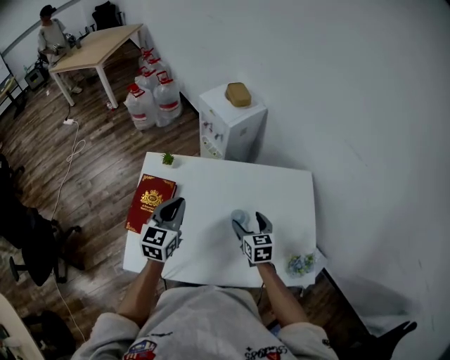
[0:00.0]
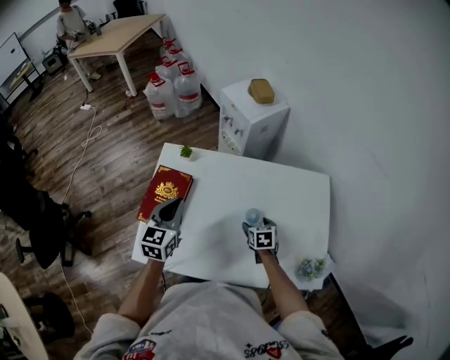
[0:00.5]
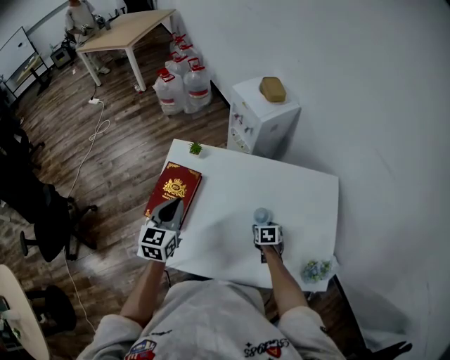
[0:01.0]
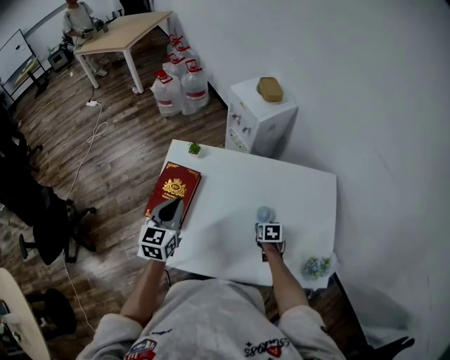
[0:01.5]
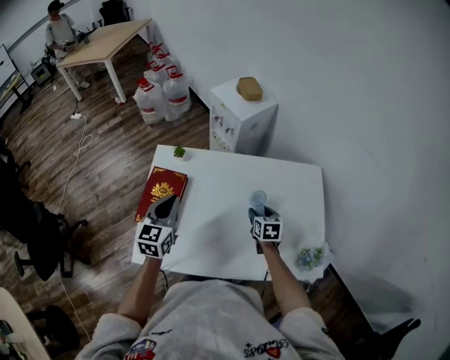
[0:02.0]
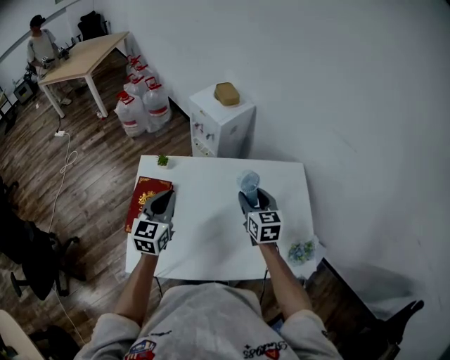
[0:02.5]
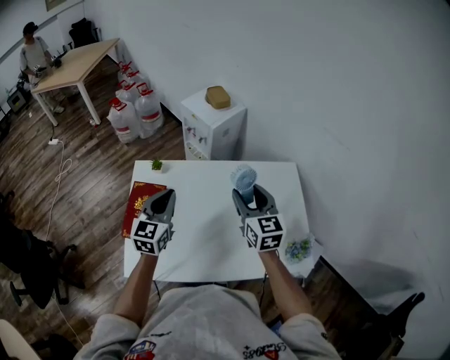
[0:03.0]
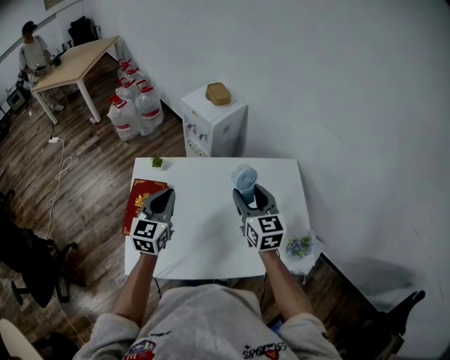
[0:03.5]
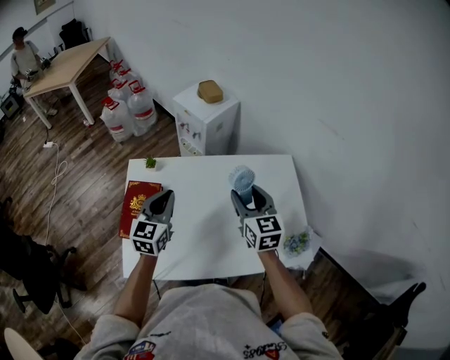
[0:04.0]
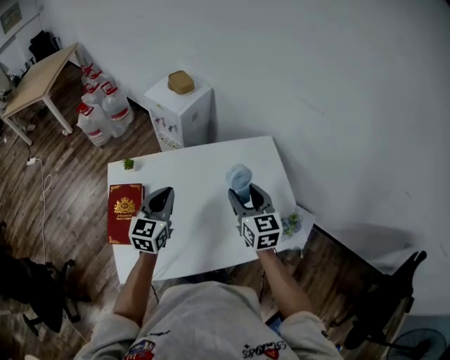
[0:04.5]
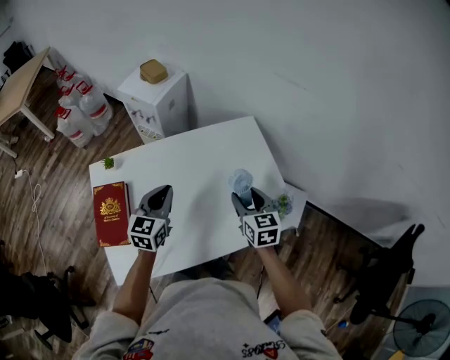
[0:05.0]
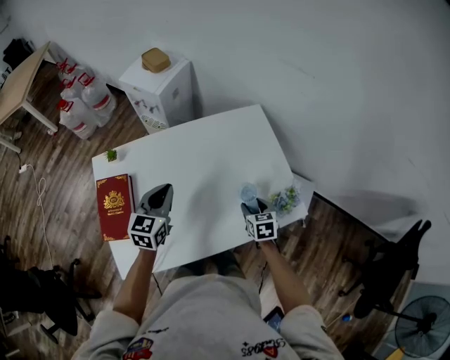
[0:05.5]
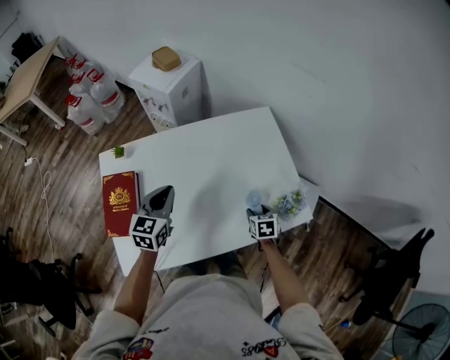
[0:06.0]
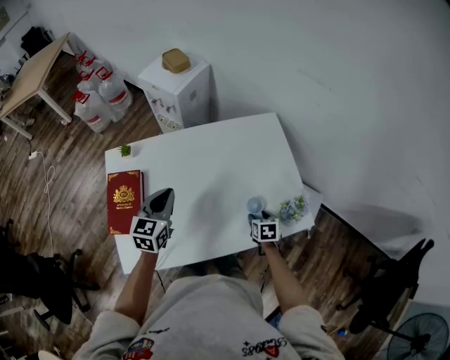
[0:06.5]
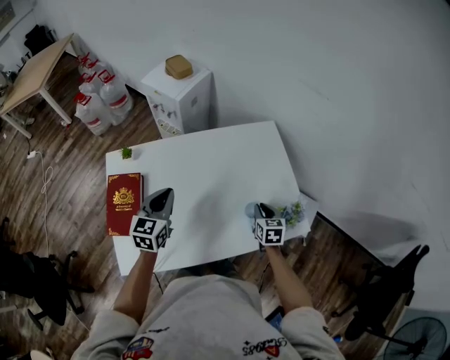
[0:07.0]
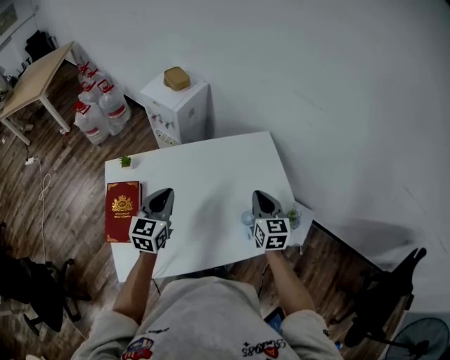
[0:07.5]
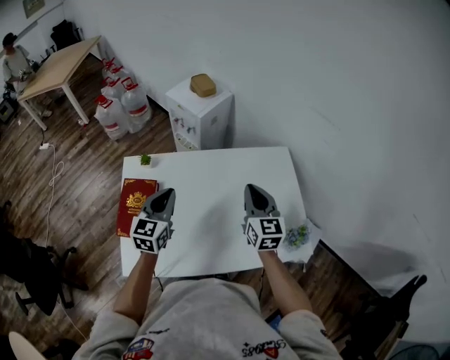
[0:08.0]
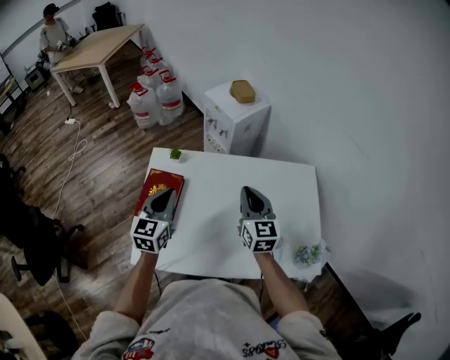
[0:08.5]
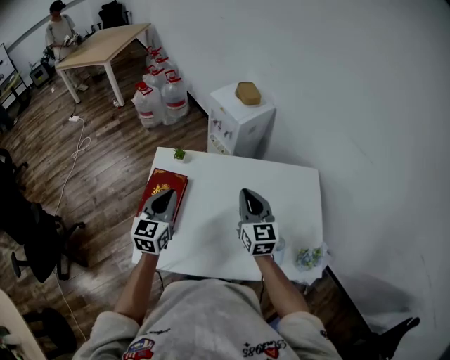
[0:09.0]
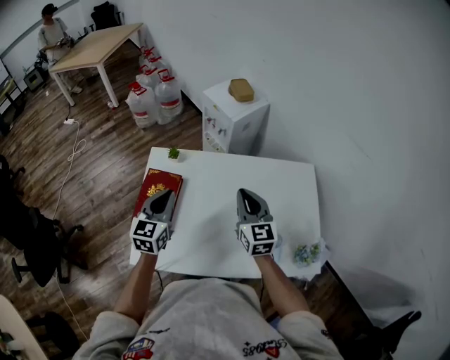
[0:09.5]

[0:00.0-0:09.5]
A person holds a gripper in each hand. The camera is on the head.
0:00.0 to 0:02.0: The right gripper shifts about 5 cm downward, and closes its fingers. The left gripper is displaced to the left by some 5 cm.
0:02.0 to 0:04.0: The right gripper moves upward, approximately 25 cm, and rotates about 30 degrees. Meanwhile the left gripper shifts about 5 cm to the right.
0:04.0 to 0:05.5: The right gripper moves downward and to the right, approximately 35 cm, and tips its fingers downward by about 30 degrees. The left gripper shifts approximately 15 cm to the right and downward.
0:05.5 to 0:07.5: The right gripper heads upward, covering roughly 20 cm, rotates about 30 degrees, and closes up; the left gripper moves roughly 5 cm.
0:07.5 to 0:09.5: Both grippers travel together to the left, about 20 cm. The right gripper changes its angle by roughly 30 degrees.

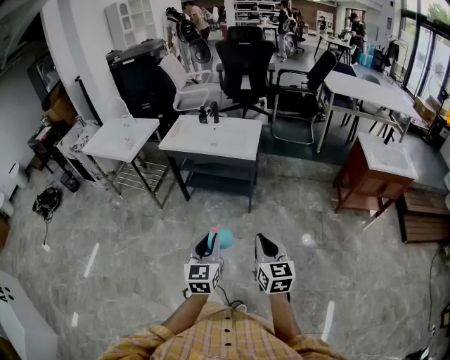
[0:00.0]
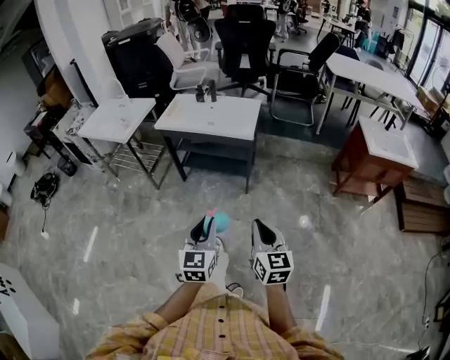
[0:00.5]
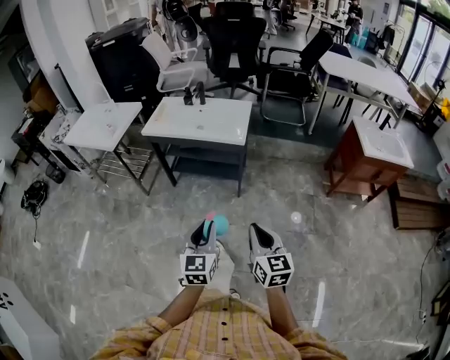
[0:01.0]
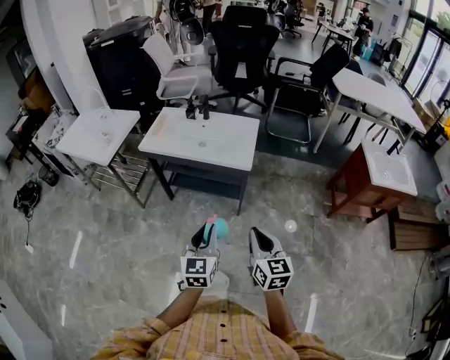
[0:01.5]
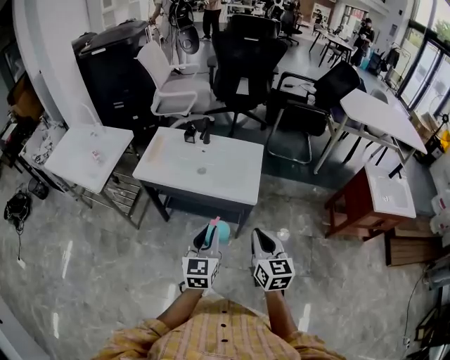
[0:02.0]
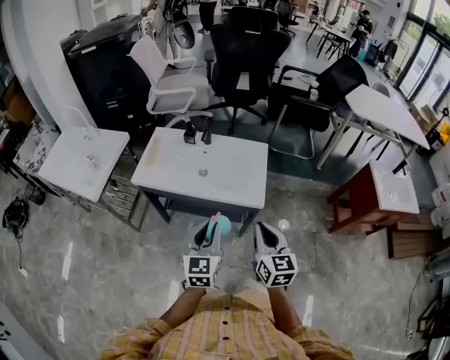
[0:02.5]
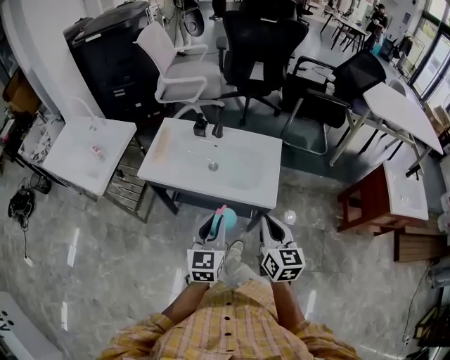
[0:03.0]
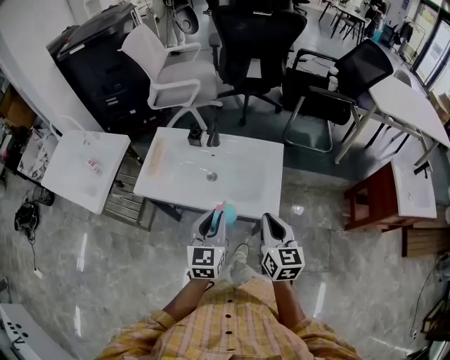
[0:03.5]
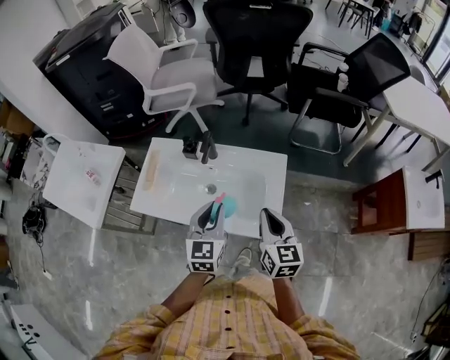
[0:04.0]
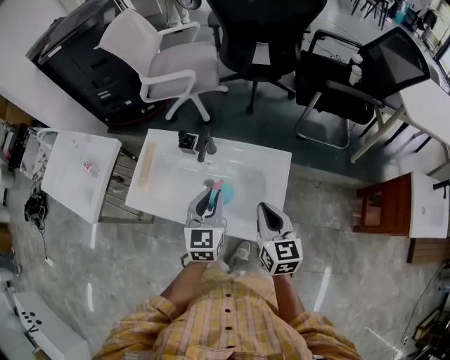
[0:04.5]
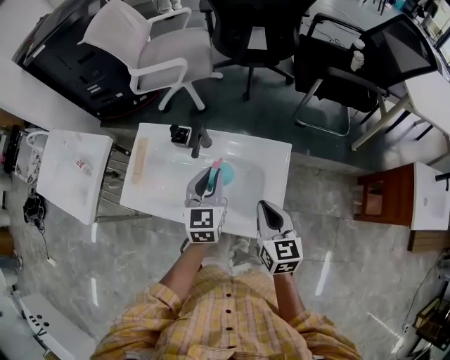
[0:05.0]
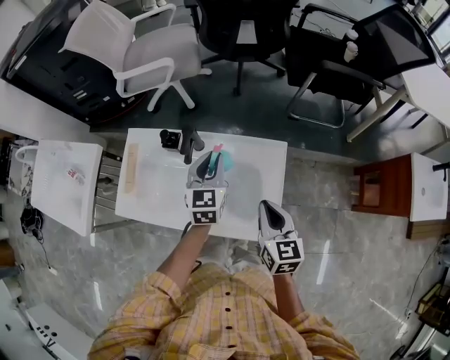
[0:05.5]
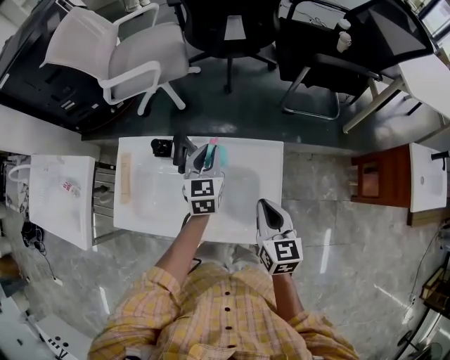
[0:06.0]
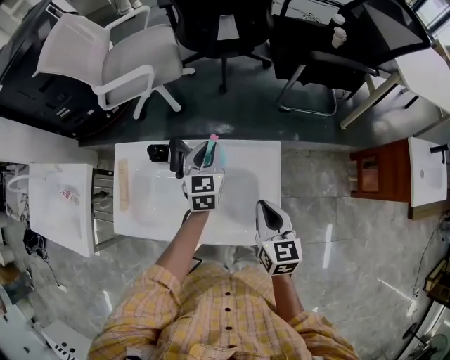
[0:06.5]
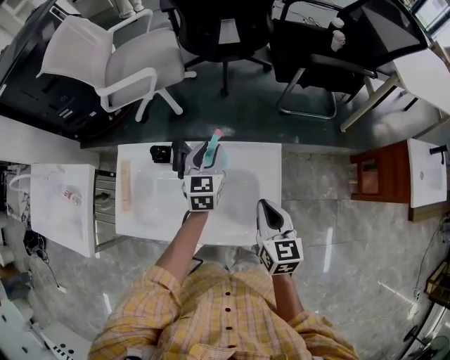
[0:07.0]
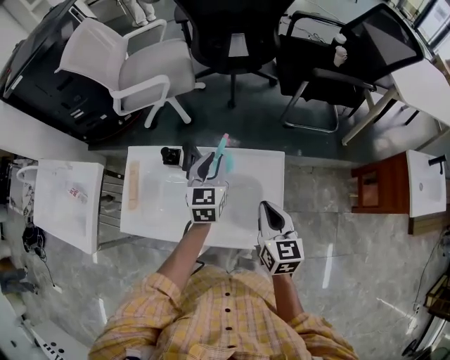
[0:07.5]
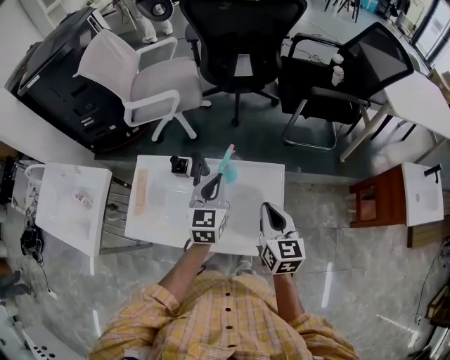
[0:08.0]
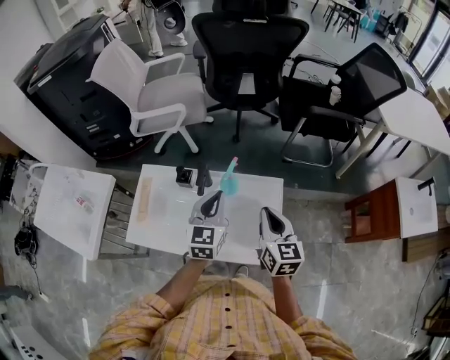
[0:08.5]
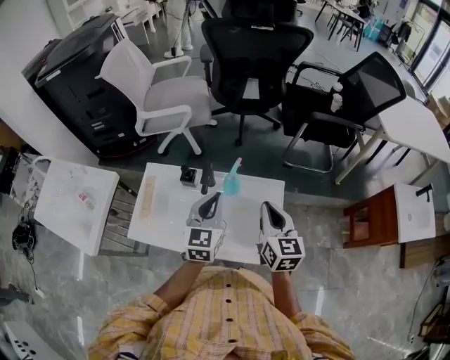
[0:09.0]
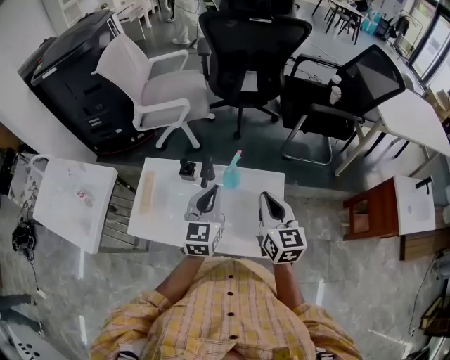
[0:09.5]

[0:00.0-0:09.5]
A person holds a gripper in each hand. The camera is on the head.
0:00.0 to 0:02.0: The grippers both shift forward by approximately 40 cm.
0:02.0 to 0:04.0: Both grippers move forward, some 30 cm.
0:04.0 to 0:05.5: The left gripper shifts roughly 20 cm forward; the right gripper travels forward and downward by about 10 cm.
0:07.5 to 0:09.5: The left gripper shifts about 15 cm backward and upward, and closes its fingers. Meanwhile the right gripper moves upward, about 10 cm.

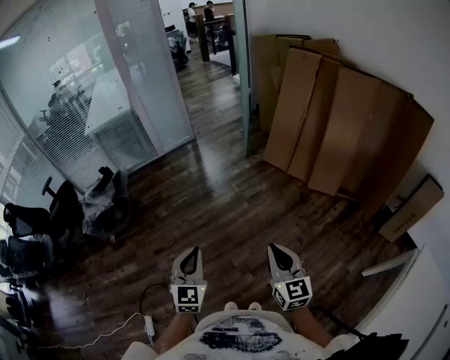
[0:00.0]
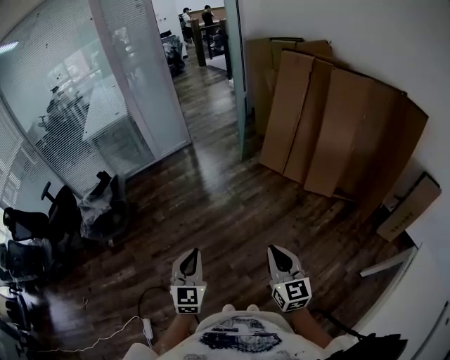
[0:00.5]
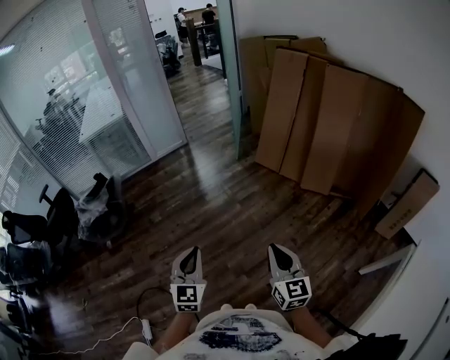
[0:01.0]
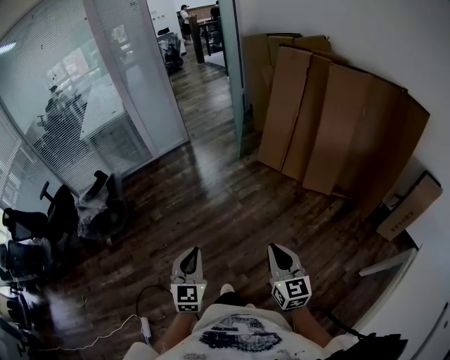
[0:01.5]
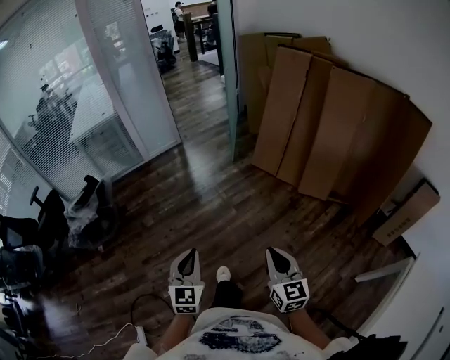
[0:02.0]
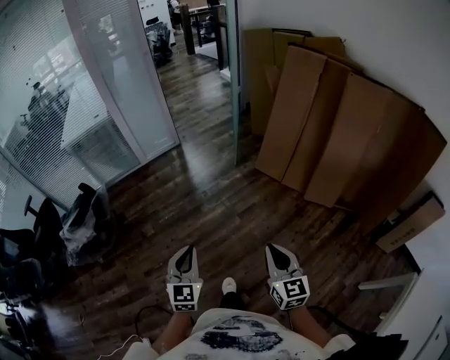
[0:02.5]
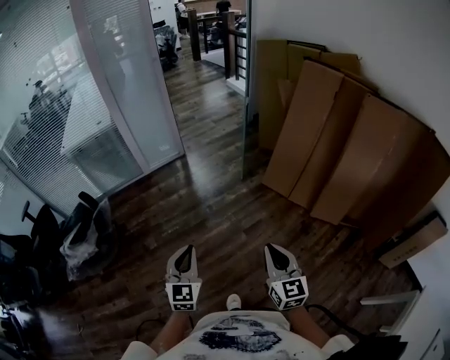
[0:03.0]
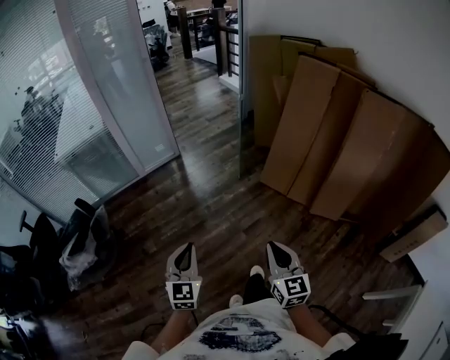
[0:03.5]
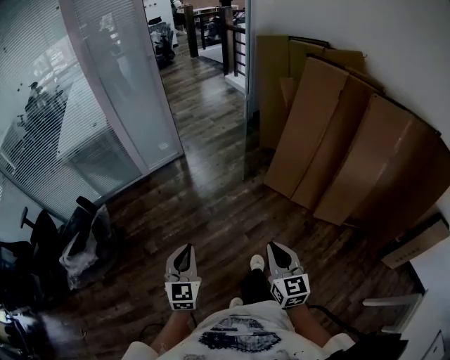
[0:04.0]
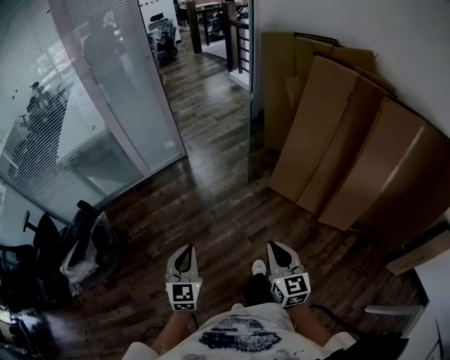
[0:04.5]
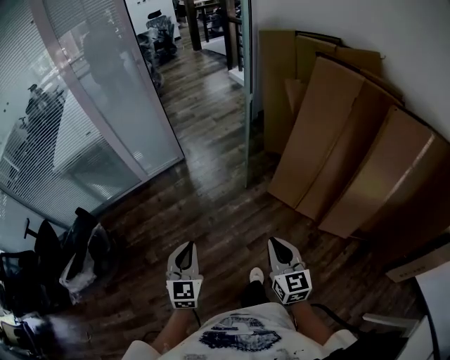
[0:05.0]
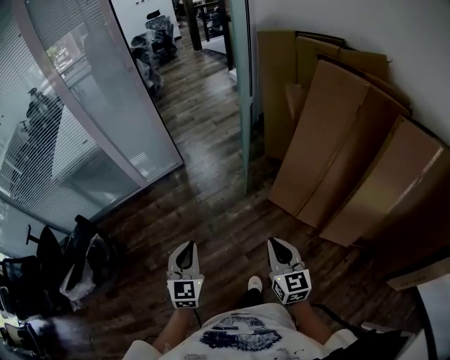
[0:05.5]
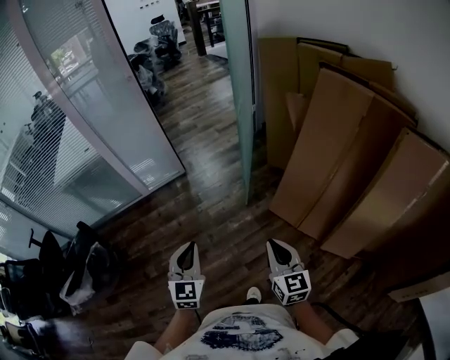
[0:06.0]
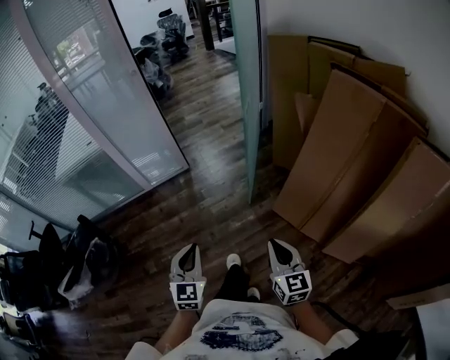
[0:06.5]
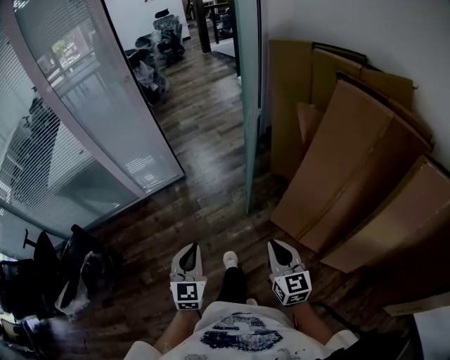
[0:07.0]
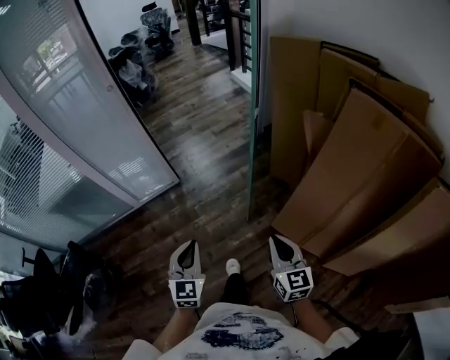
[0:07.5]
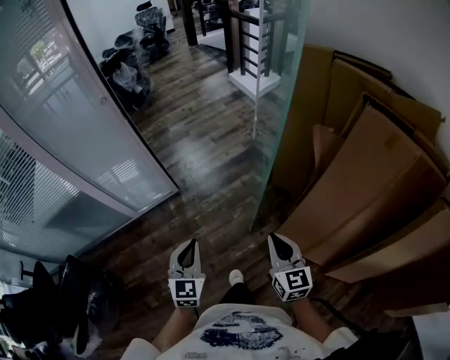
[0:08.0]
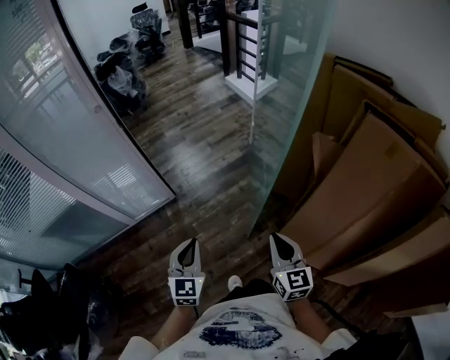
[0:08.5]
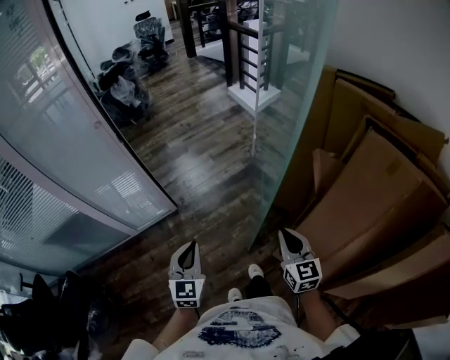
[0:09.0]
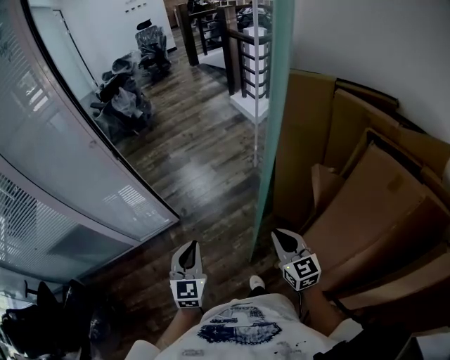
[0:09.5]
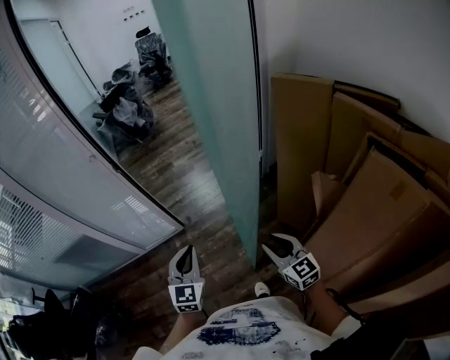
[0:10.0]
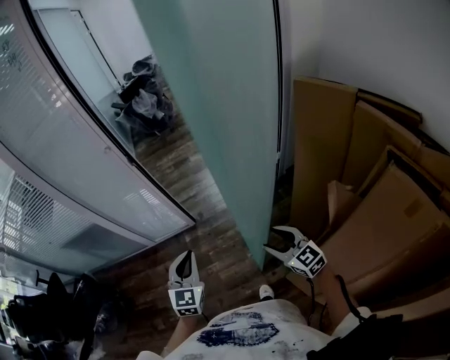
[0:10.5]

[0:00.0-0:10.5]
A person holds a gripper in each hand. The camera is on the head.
0:00.0 to 0:02.0: The grippers both shift forward and to the right by roughly 10 cm.
0:02.0 to 0:04.0: The two grippers go roughly 30 cm forward.
0:04.0 to 0:06.5: Both grippers travel together forward and to the right, roughly 30 cm.
0:06.5 to 0:08.5: Both grippers travel together forward, some 35 cm.
0:08.5 to 0:10.5: The left gripper moves roughly 10 cm; the right gripper changes place by approximately 20 cm, changes its angle by roughly 40 degrees, and opens its fingers.
